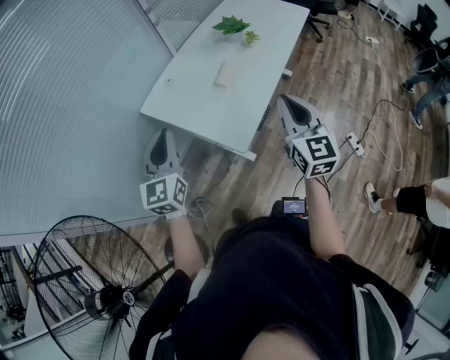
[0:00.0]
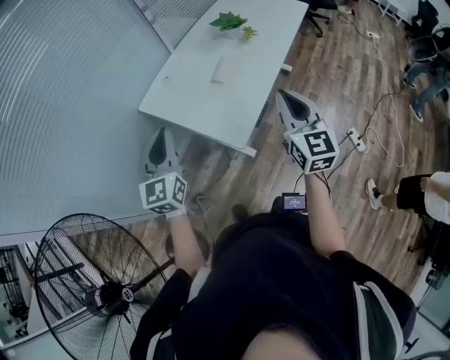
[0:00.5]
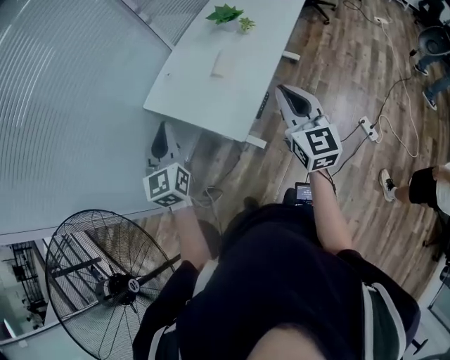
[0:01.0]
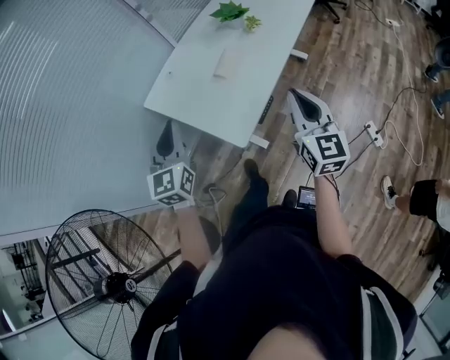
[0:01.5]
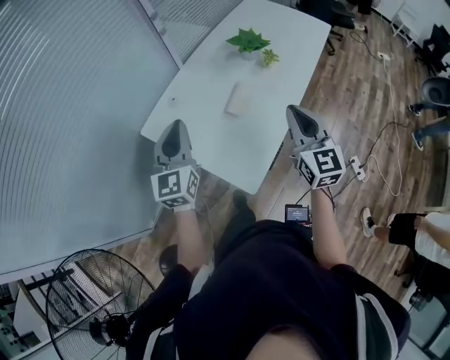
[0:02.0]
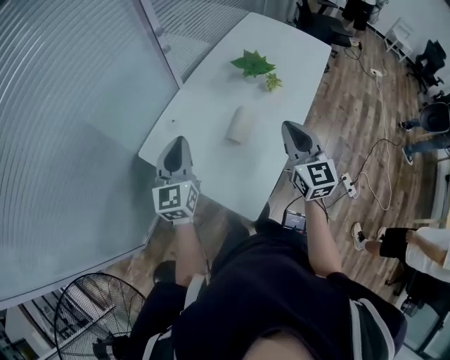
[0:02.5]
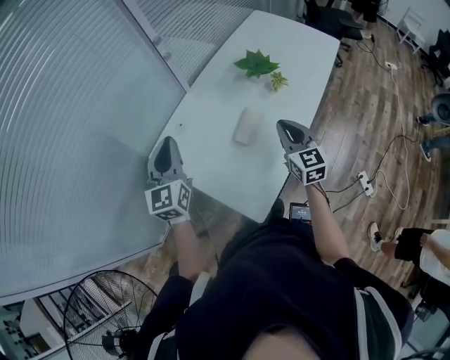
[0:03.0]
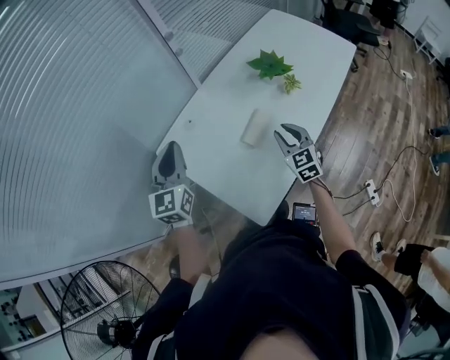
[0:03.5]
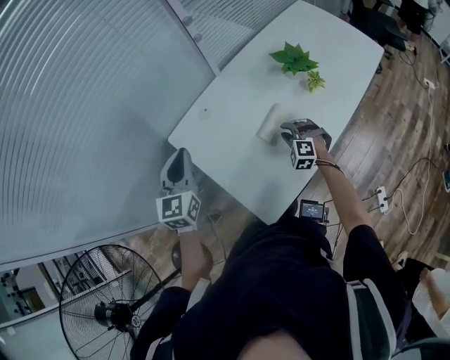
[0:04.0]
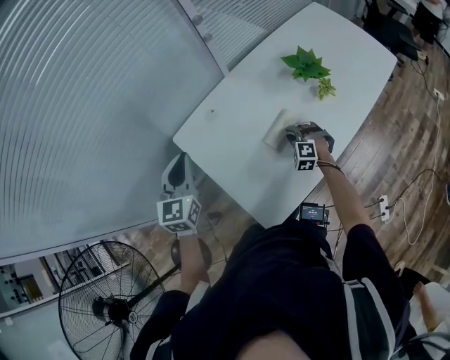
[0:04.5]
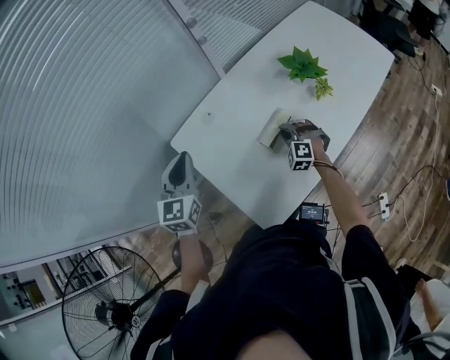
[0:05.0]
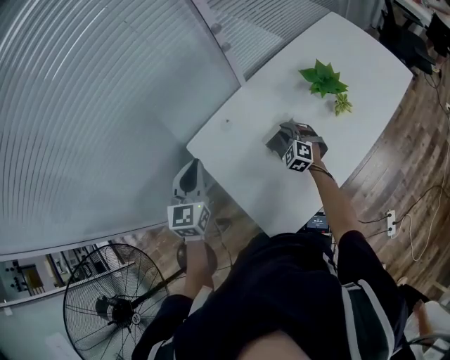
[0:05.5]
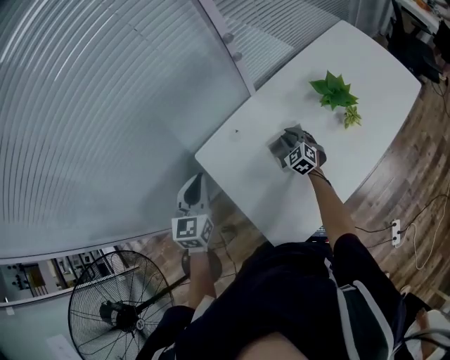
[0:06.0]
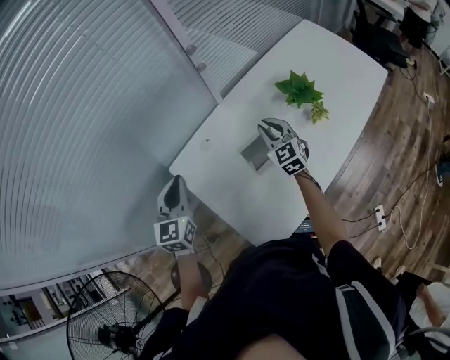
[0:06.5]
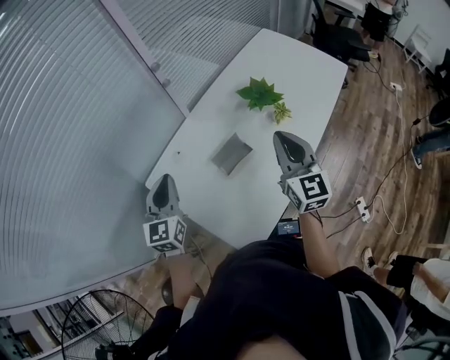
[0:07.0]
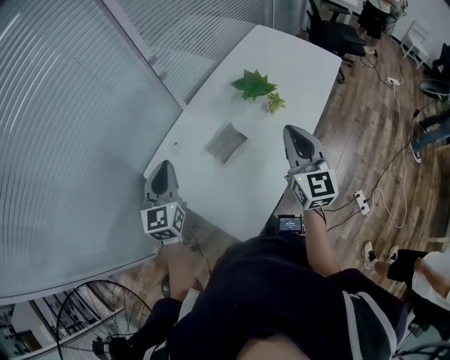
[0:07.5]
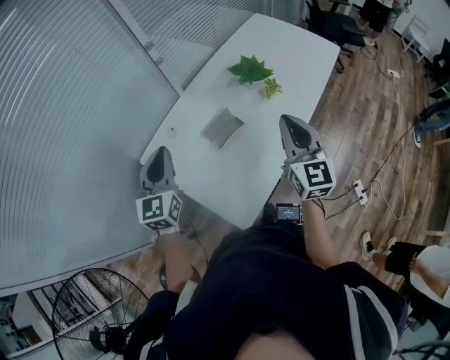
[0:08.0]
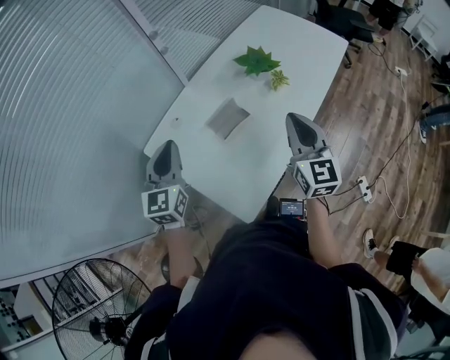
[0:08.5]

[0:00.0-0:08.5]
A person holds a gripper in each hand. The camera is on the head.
0:00.0 to 0:02.0: The grippers both shift forward by some 20 cm.
0:02.0 to 0:04.0: The left gripper moves to the left and forward, approximately 10 cm, while the right gripper goes some 35 cm downward and forward, tips its fingers downward by about 40 degrees, and opens its fingers.
0:04.0 to 0:06.5: The left gripper moves forward, some 5 cm. Meanwhile the right gripper is displaced forward and upward by approximately 20 cm, and rotates around the line of its fingers by about 40 degrees, clockwise from behind.
0:06.5 to 0:08.5: The right gripper moves backward, to the right and upward, about 30 cm, and swivels roughly 30 degrees. The left gripper travels to the right and upward by about 10 cm.

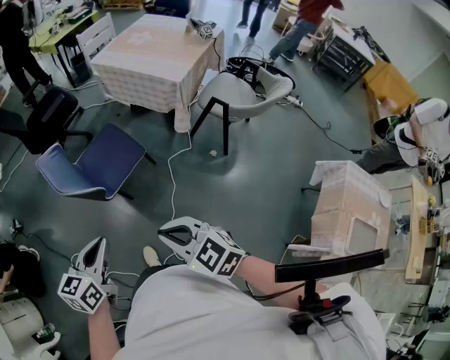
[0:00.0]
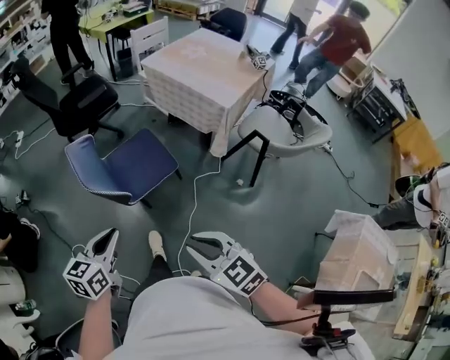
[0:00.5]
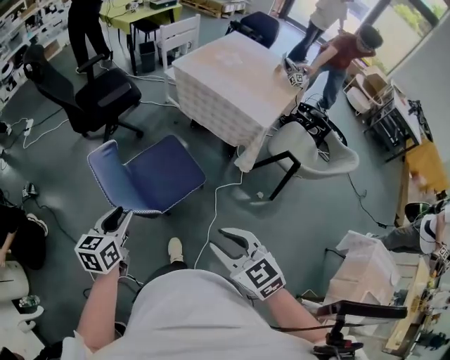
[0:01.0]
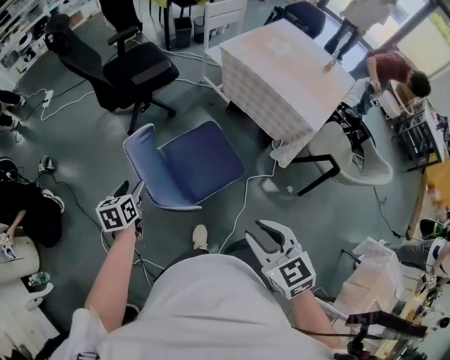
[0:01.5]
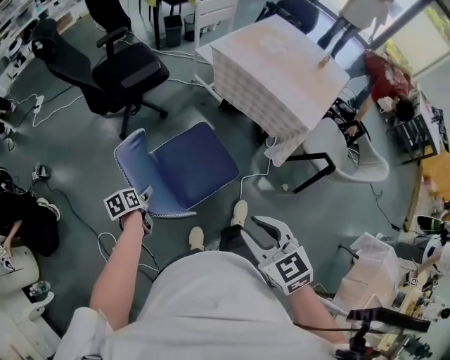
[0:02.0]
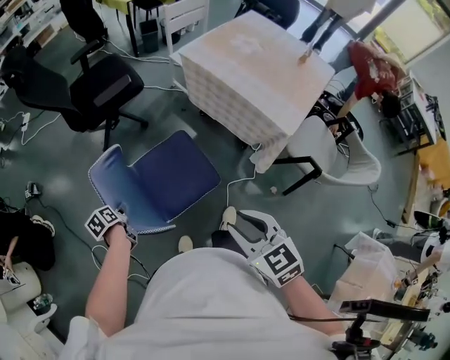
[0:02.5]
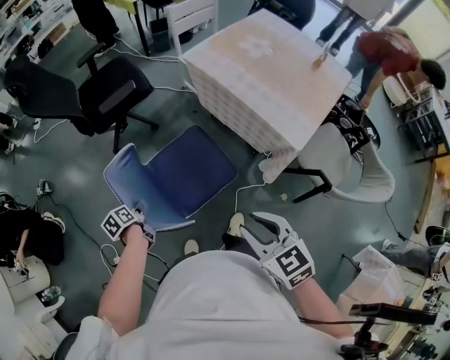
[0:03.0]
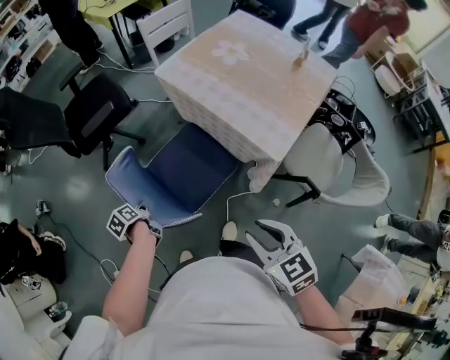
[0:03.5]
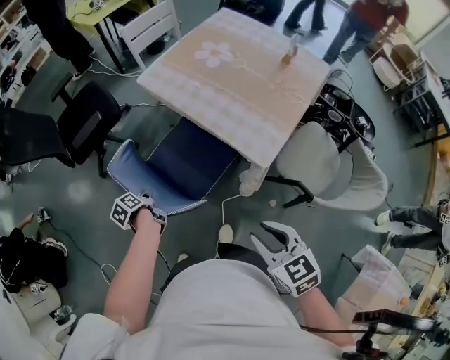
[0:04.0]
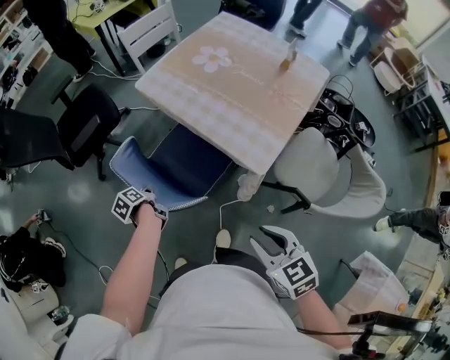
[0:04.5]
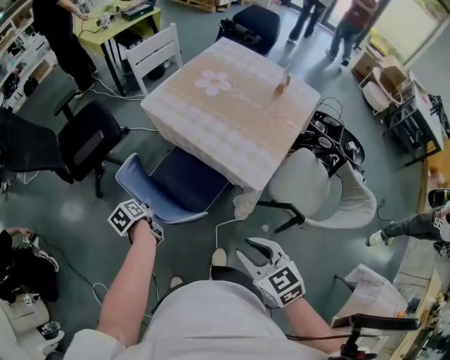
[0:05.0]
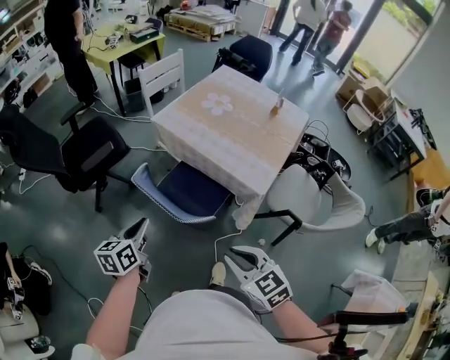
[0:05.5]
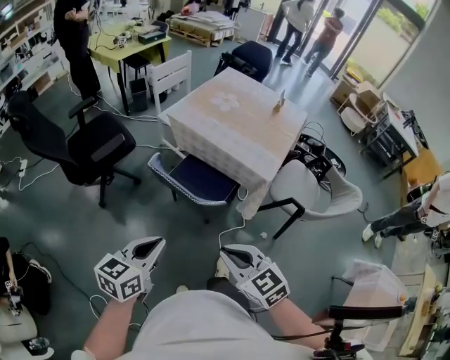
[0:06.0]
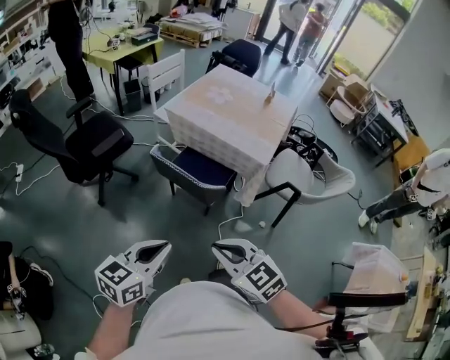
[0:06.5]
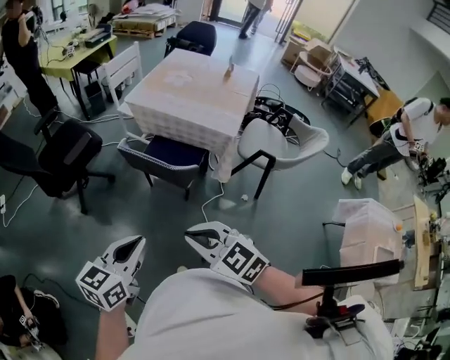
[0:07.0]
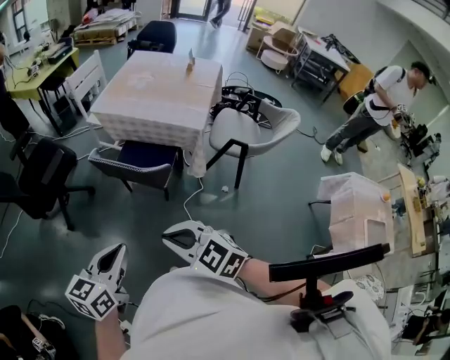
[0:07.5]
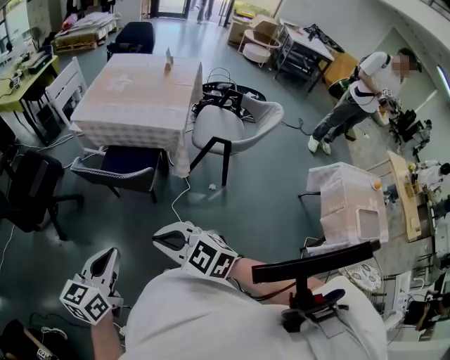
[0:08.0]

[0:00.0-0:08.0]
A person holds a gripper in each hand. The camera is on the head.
0:00.0 to 0:02.0: The right gripper is displaced forward by some 30 cm, and opens its fingers. Meanwhile the left gripper heads forward, downward and to the left, covering about 50 cm, turns by approximately 50 degrees, and opens up.
0:02.0 to 0:04.0: The right gripper goes roughly 35 cm to the right, while the left gripper moves to the right and forward, roughly 35 cm, swivels about 30 degrees, and closes up.
0:04.0 to 0:06.0: The left gripper shifts about 35 cm upward and backward, and tips its fingers upward by some 30 degrees. Meanwhile the right gripper shifts roughly 25 cm to the left, and closes up.
0:06.0 to 0:08.0: Both grippers move backward, approximately 10 cm.

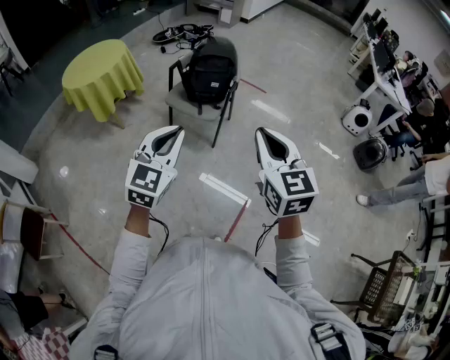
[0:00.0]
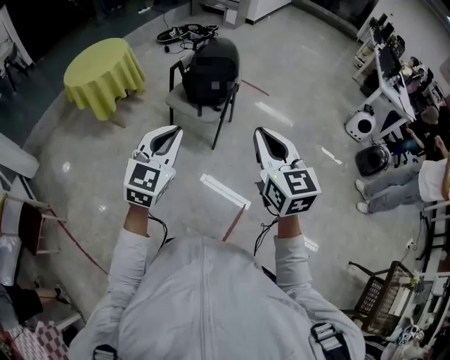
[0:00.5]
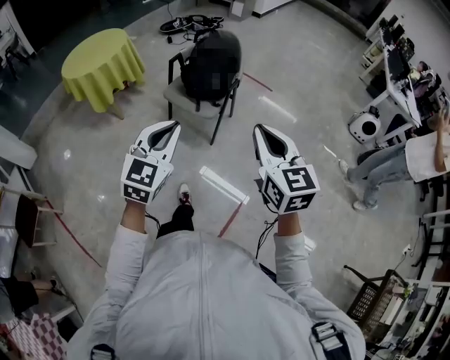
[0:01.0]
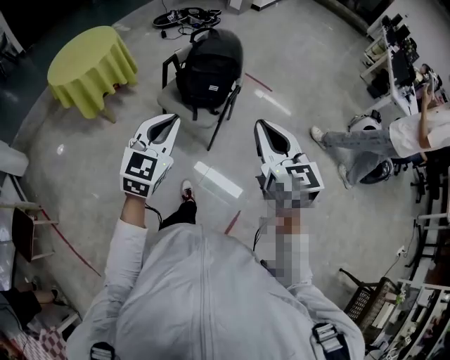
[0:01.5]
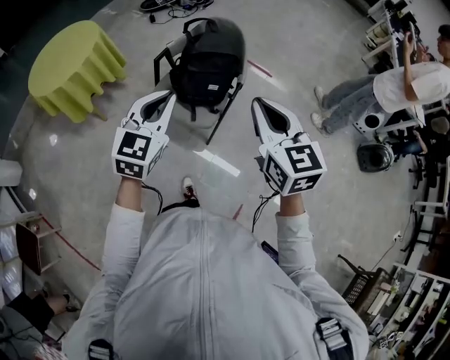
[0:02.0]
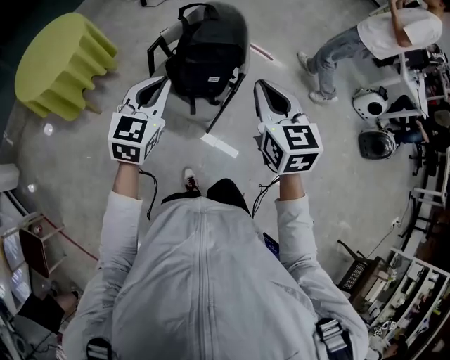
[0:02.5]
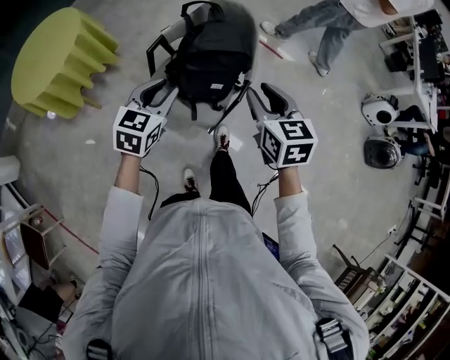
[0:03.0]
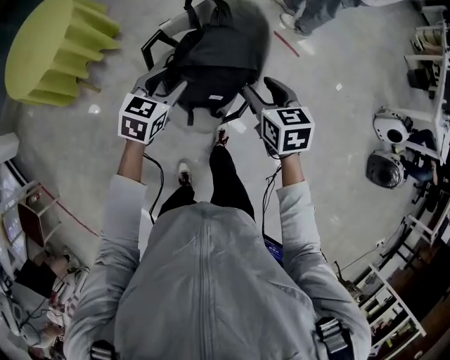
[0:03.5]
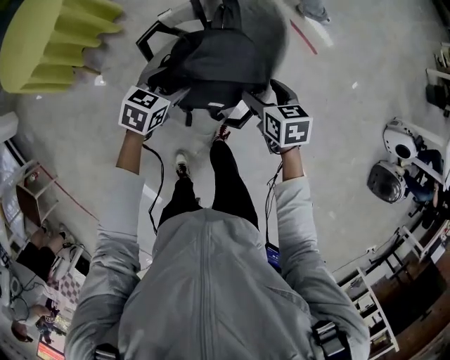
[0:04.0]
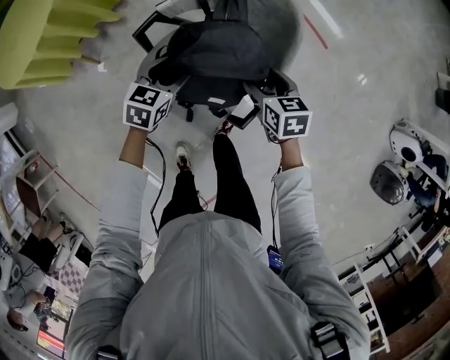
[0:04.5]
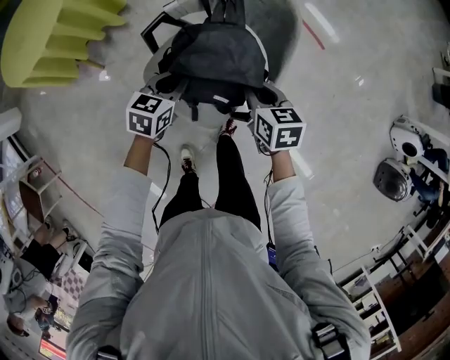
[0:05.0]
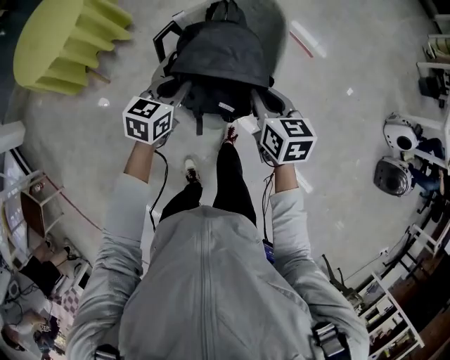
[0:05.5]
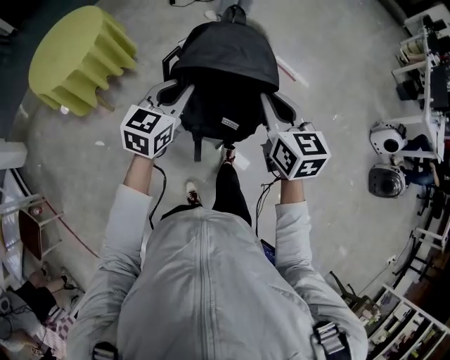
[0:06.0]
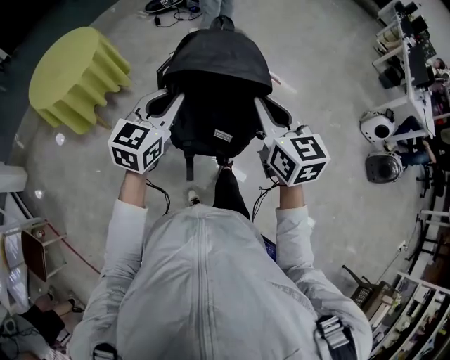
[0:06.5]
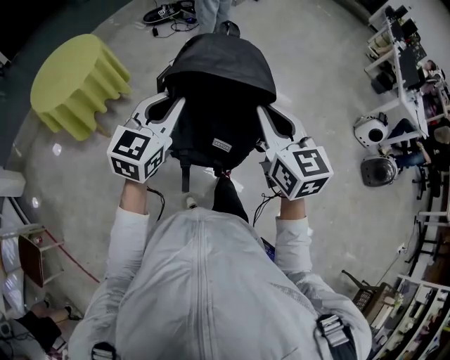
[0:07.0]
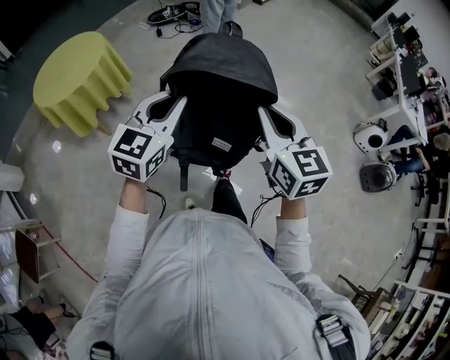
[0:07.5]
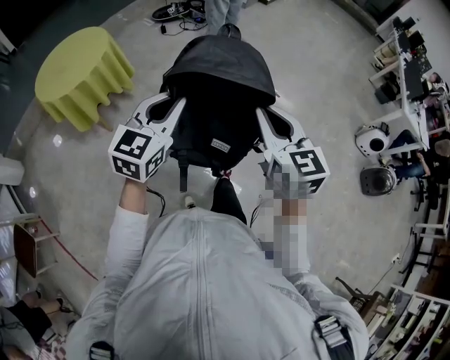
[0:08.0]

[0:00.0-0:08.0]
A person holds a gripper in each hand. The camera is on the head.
0:00.0 to 0:02.0: Both grippers move forward, approximately 35 cm.
0:02.0 to 0:04.0: Both grippers travel together downward and forward, about 50 cm. The right gripper tips its fingers downward by roughly 30 degrees, and opens up. The left gripper tips its fingers downward by about 30 degrees, and opens its fingers.
0:04.0 to 0:06.0: Both grippers move upward and backward, roughly 30 cm. The left gripper swivels approximately 30 degrees, and closes; the right gripper rotates roughly 30 degrees, and closes its fingers.
0:06.0 to 0:08.0: The grippers both shift backward and upward by approximately 15 cm.

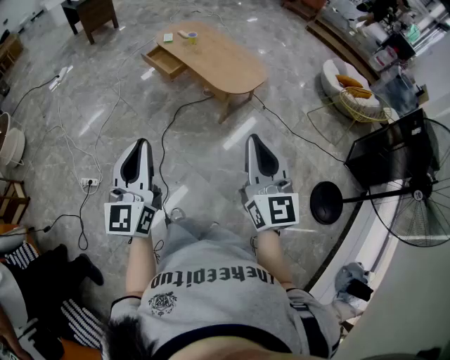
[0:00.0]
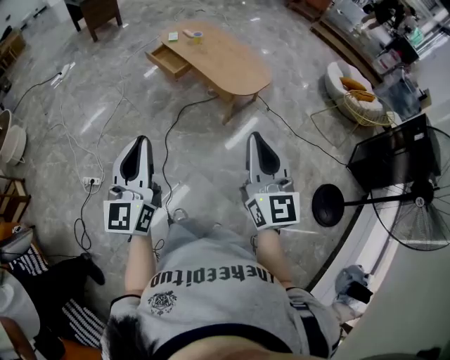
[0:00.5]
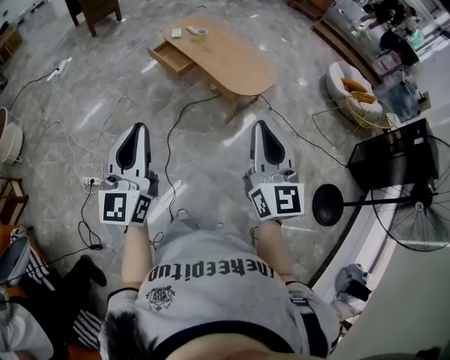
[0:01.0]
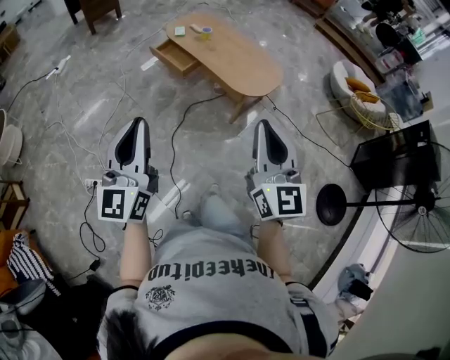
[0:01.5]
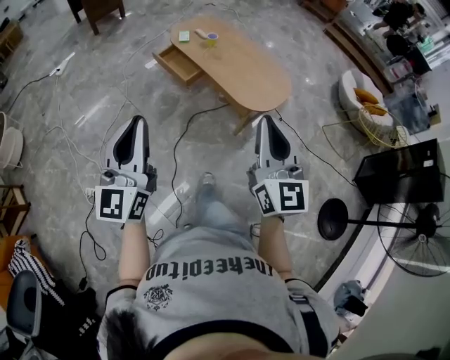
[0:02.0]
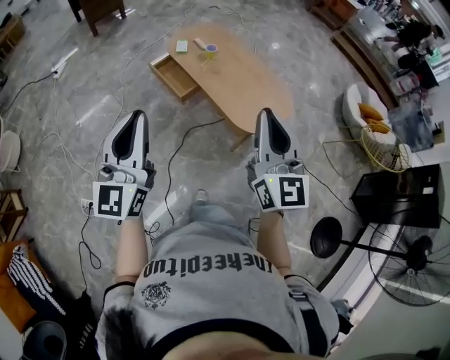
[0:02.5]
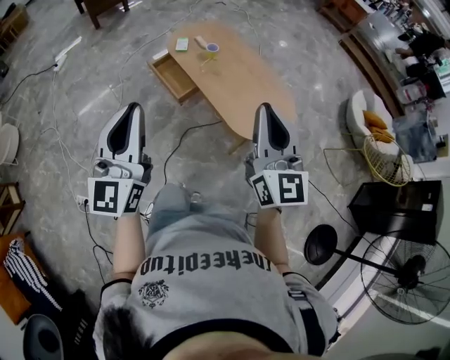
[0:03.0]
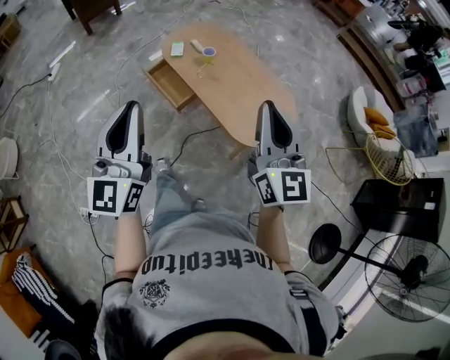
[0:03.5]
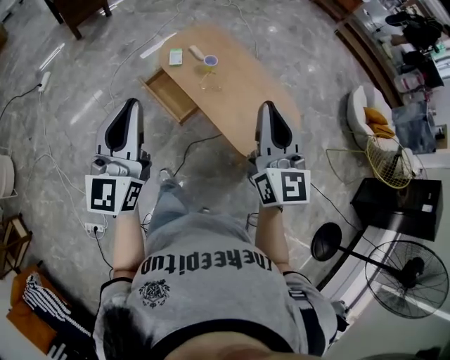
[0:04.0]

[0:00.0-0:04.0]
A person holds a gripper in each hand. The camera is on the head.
0:00.0 to 0:02.0: Both grippers move forward and to the left, about 25 cm.
0:02.0 to 0:04.0: Both grippers are carried forward, approximately 40 cm.
